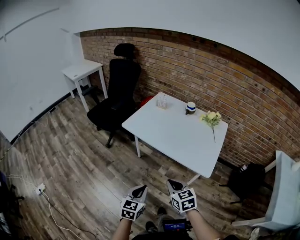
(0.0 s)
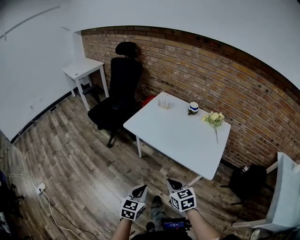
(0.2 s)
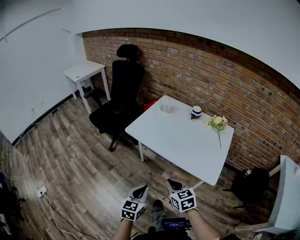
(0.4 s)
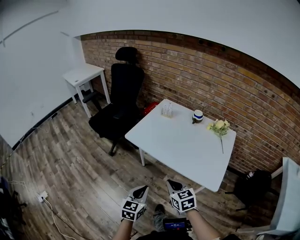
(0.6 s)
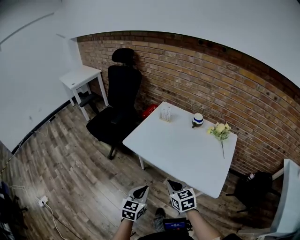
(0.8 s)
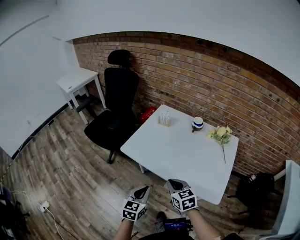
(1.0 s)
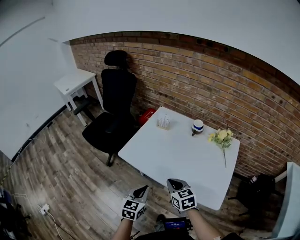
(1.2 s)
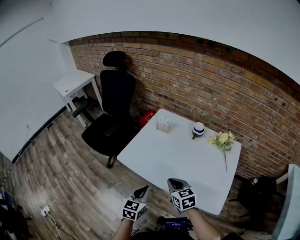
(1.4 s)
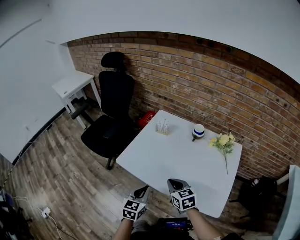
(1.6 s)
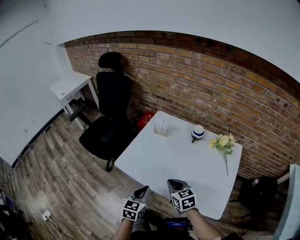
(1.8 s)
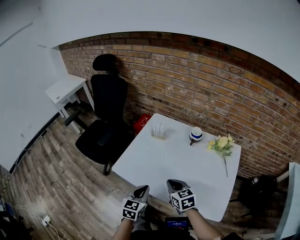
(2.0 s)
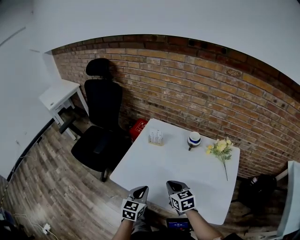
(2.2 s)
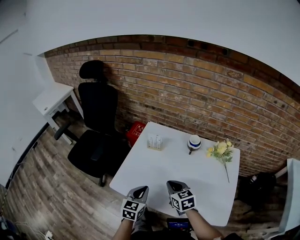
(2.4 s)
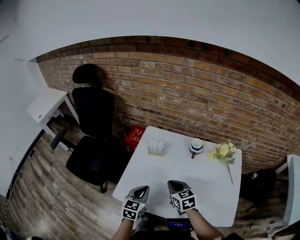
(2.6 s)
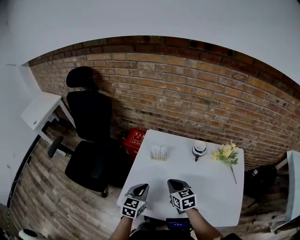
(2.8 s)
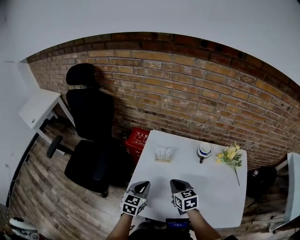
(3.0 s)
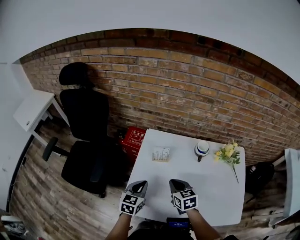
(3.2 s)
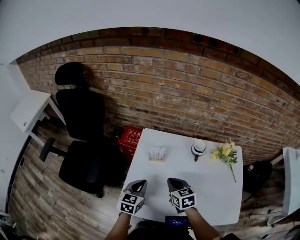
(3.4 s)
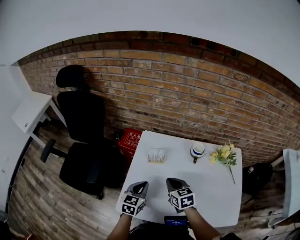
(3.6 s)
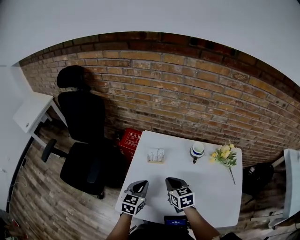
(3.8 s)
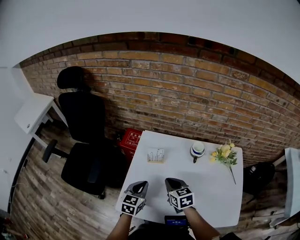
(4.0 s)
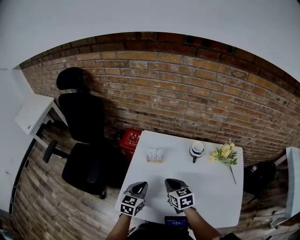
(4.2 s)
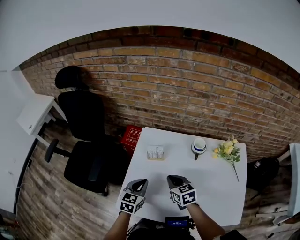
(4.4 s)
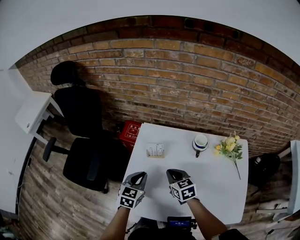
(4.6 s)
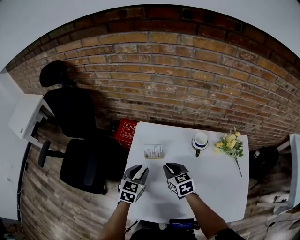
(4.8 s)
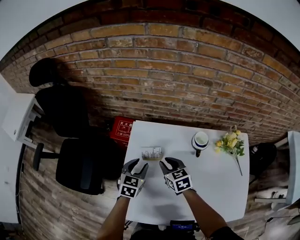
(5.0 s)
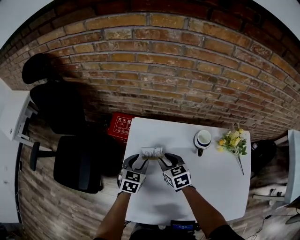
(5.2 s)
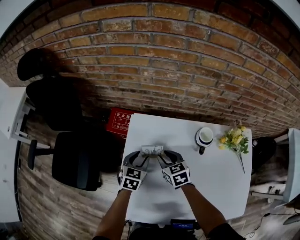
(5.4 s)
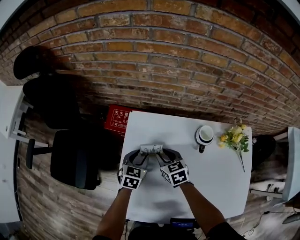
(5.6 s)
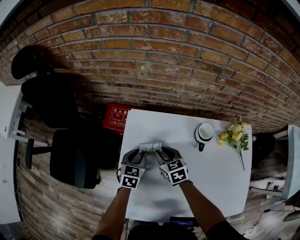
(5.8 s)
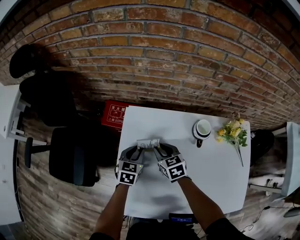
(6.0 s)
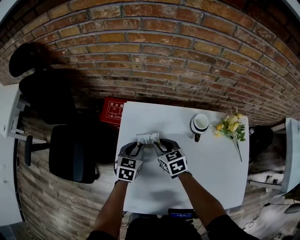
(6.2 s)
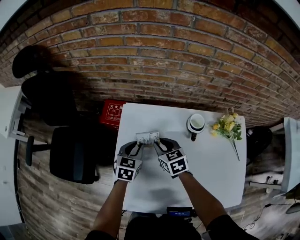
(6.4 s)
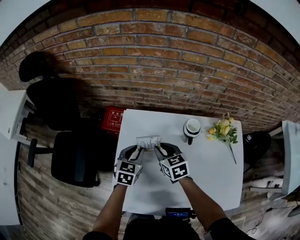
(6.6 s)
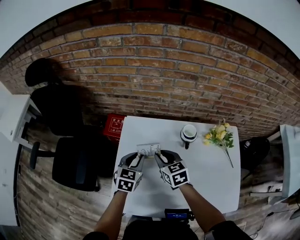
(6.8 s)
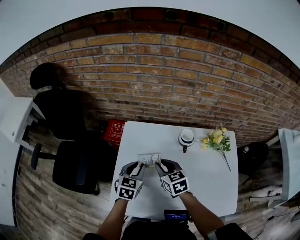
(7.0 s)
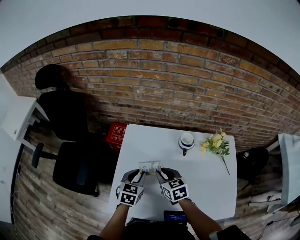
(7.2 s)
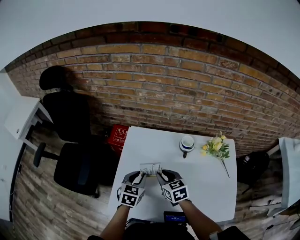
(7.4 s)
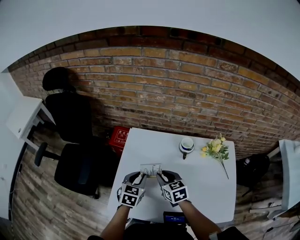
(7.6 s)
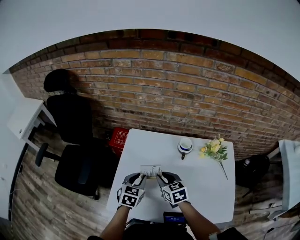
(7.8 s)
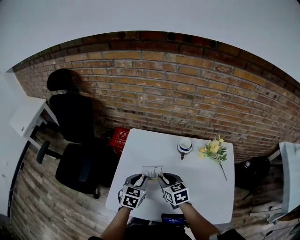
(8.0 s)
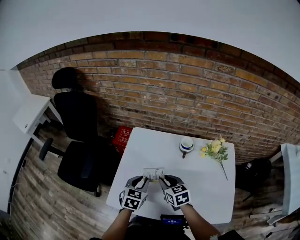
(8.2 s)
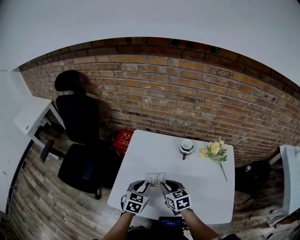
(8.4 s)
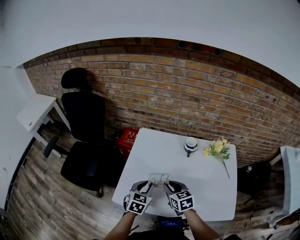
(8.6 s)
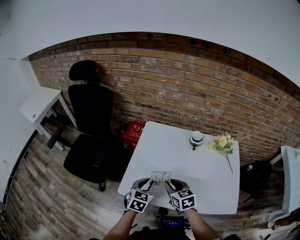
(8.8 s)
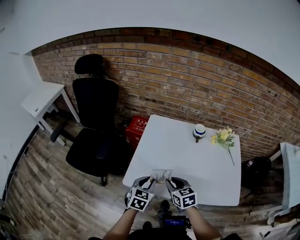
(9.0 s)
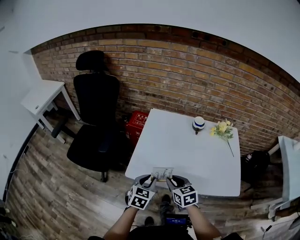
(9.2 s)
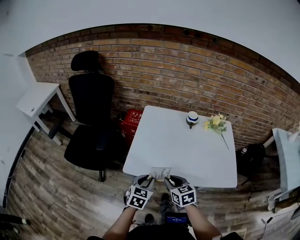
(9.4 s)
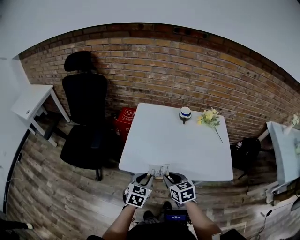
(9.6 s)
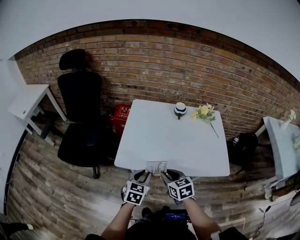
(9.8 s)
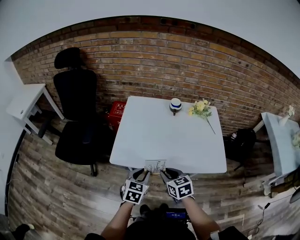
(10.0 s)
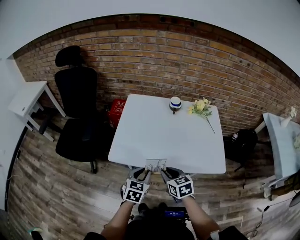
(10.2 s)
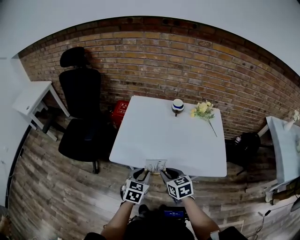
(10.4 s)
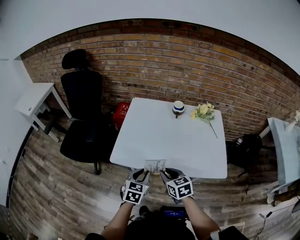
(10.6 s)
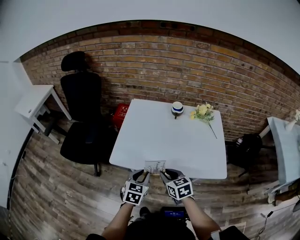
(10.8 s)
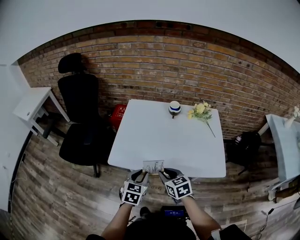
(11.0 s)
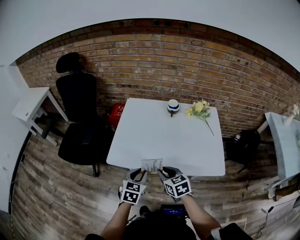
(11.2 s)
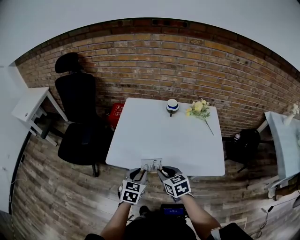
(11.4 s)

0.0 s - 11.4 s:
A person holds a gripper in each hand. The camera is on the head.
0.0 s - 1.4 s: Both grippers travel together forward, some 30 cm.
1.4 s - 2.8 s: The grippers both shift forward by roughly 25 cm.
2.8 s - 4.2 s: The grippers move only a little.
4.2 s - 5.6 s: Both grippers travel together forward and downward, approximately 20 cm. The left gripper opens. Meanwhile the right gripper opens its fingers.
5.6 s - 7.2 s: The two grippers go about 15 cm backward and upward.
7.2 s - 8.6 s: The two grippers go about 10 cm backward.
8.6 s - 10.0 s: Both grippers move backward, about 20 cm.
10.0 s - 11.4 s: The grippers make only small movements.

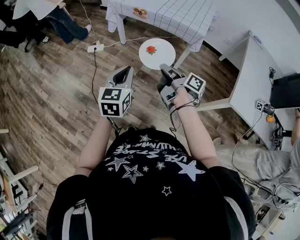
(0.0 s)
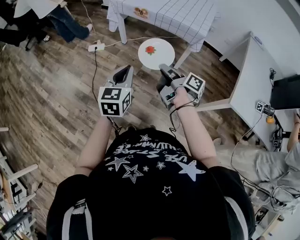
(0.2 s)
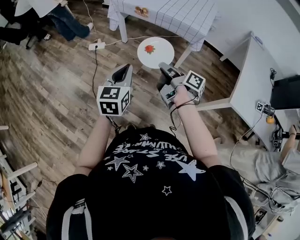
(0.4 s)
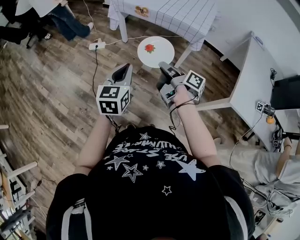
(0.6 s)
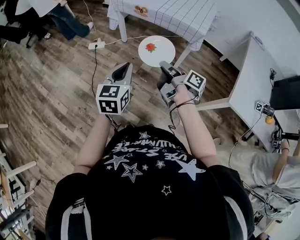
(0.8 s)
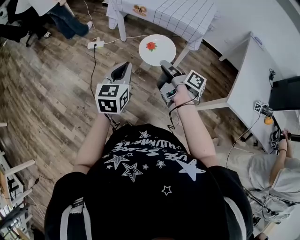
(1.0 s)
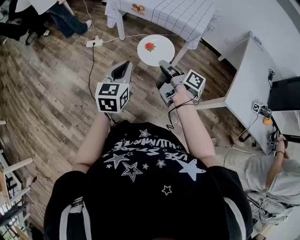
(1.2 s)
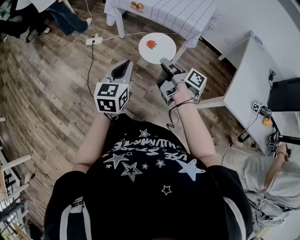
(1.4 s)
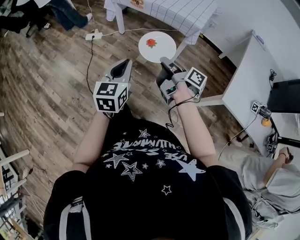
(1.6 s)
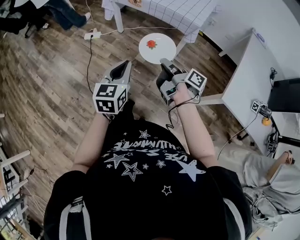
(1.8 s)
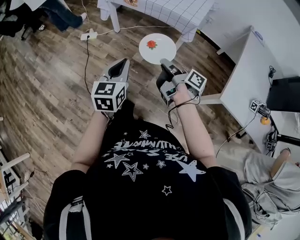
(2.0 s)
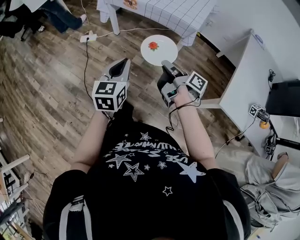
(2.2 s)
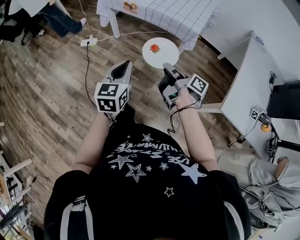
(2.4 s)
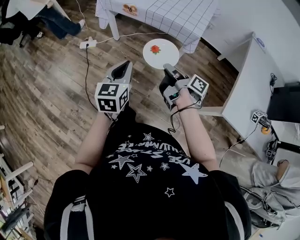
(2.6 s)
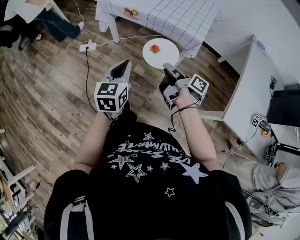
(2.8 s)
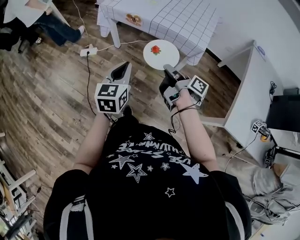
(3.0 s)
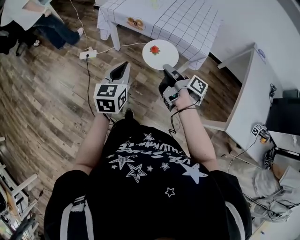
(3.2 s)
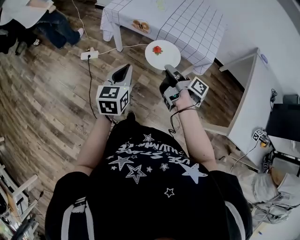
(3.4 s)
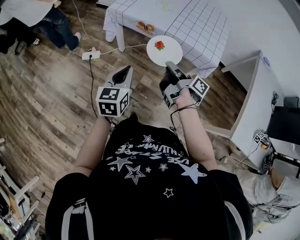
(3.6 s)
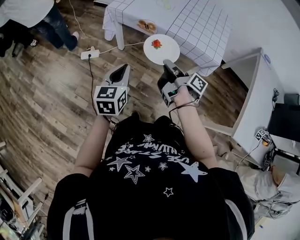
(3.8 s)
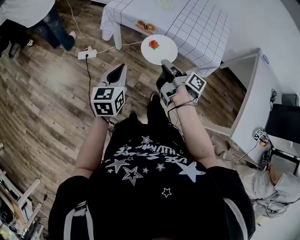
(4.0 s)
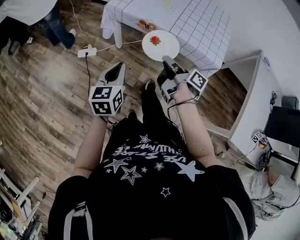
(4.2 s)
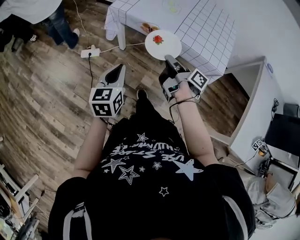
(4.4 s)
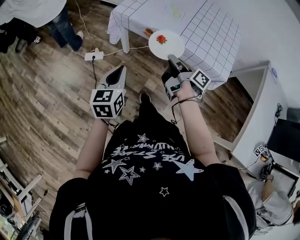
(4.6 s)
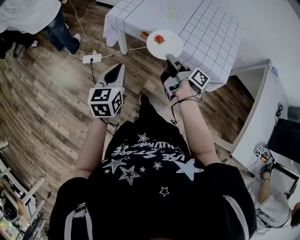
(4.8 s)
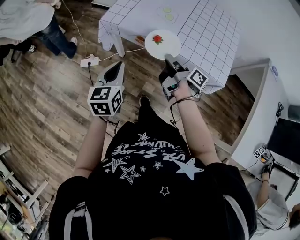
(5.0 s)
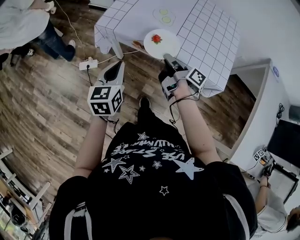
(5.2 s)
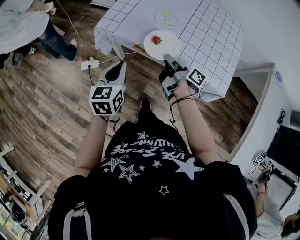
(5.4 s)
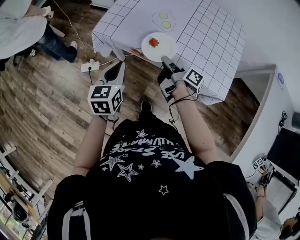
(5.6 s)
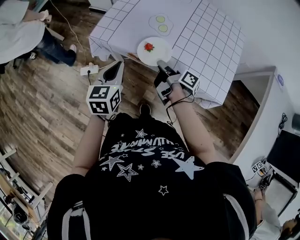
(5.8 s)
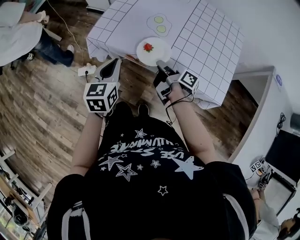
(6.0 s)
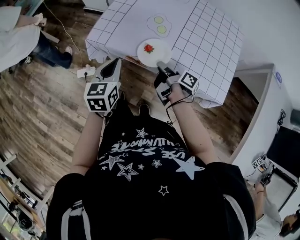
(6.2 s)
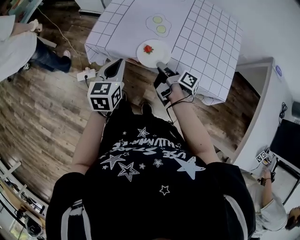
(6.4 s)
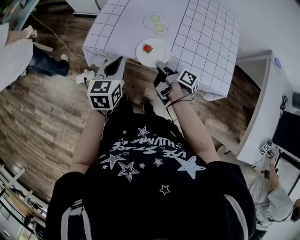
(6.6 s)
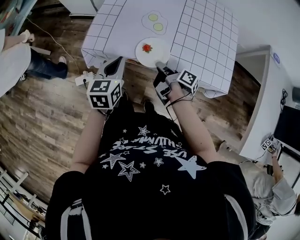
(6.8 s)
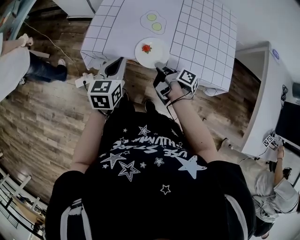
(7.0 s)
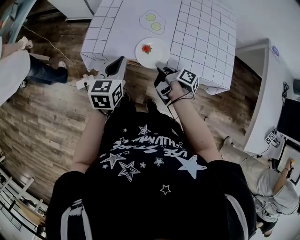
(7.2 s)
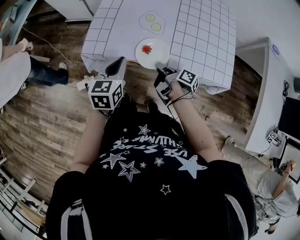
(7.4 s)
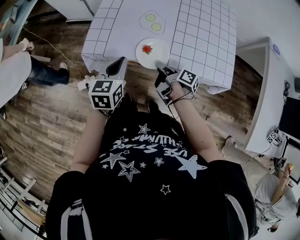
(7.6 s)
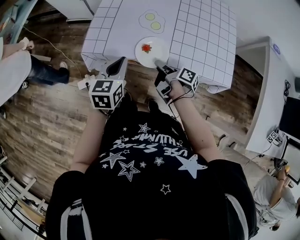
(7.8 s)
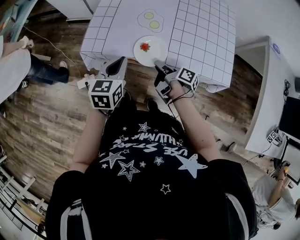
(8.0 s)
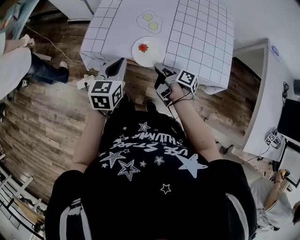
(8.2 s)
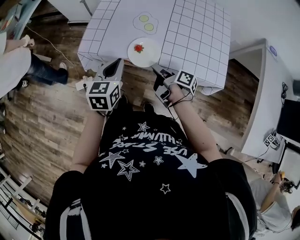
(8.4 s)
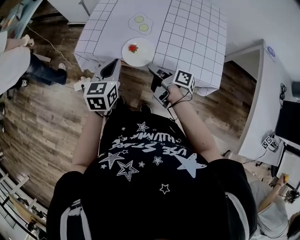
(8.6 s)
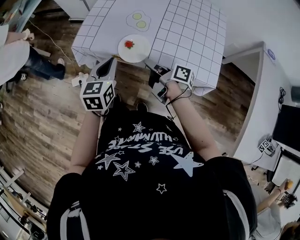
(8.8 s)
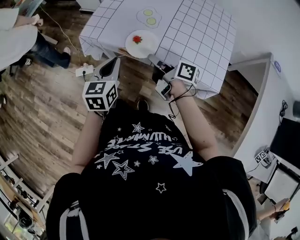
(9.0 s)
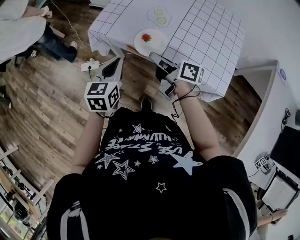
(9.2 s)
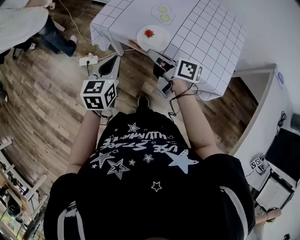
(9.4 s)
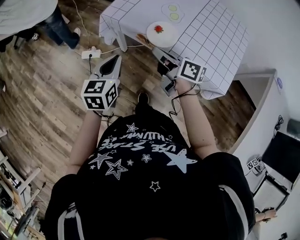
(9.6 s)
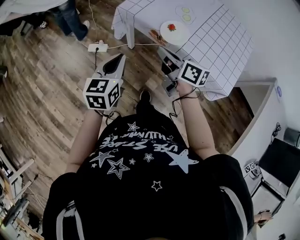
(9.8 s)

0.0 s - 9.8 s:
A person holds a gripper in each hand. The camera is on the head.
0.0 s - 1.4 s: The left gripper shifts by approximately 5 cm.
1.4 s - 2.8 s: The left gripper ends up about 15 cm from where it was.
2.8 s - 4.2 s: The left gripper shifts by about 25 cm.
4.2 s - 5.6 s: The left gripper changes place by approximately 20 cm.
5.6 s - 7.0 s: The left gripper ends up some 10 cm from where it was.
8.4 s - 9.8 s: The left gripper changes place by approximately 20 cm, and rotates approximately 20 degrees.

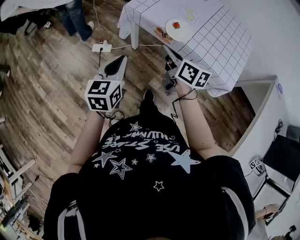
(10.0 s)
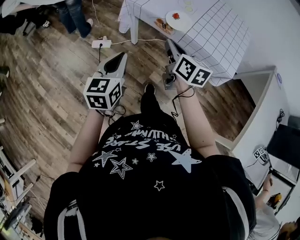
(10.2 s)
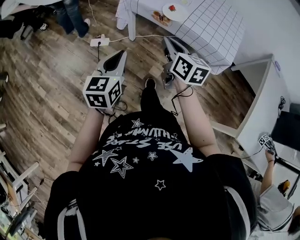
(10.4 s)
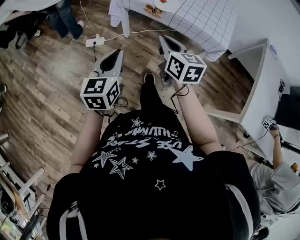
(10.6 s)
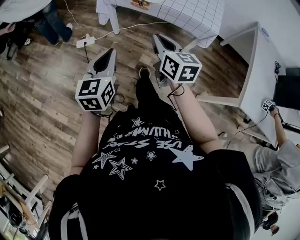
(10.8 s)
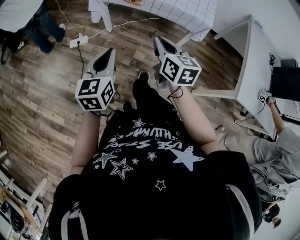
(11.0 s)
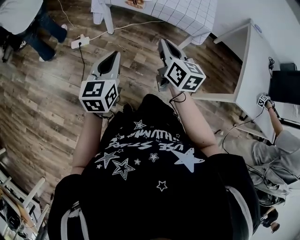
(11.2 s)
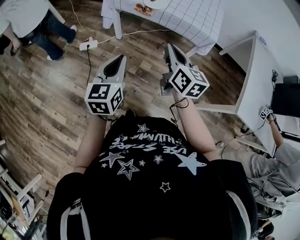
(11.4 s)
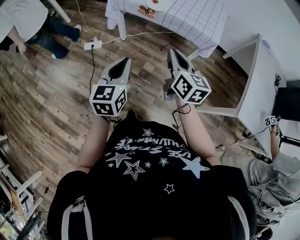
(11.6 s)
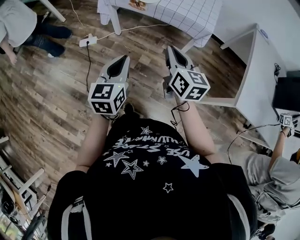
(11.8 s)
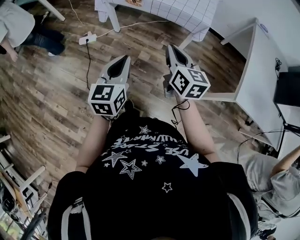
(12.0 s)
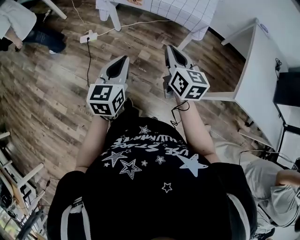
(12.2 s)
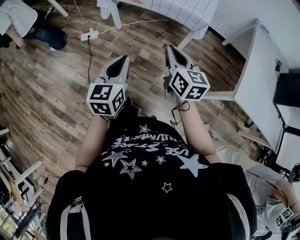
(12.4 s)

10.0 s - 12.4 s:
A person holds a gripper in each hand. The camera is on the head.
10.0 s - 11.2 s: The left gripper moves about 20 cm.
11.2 s - 12.4 s: The left gripper ends up approximately 15 cm from where it was.
